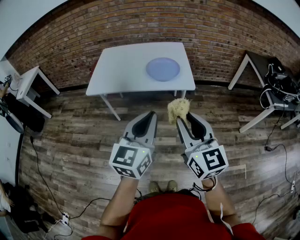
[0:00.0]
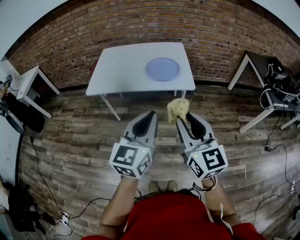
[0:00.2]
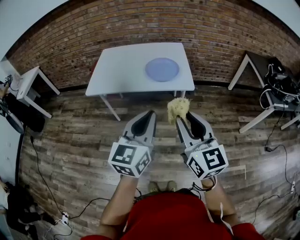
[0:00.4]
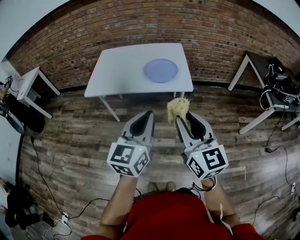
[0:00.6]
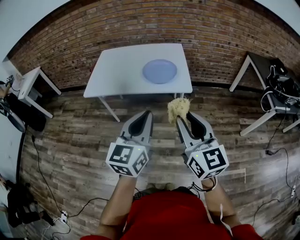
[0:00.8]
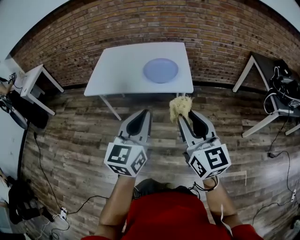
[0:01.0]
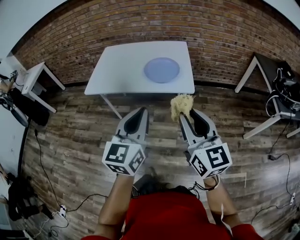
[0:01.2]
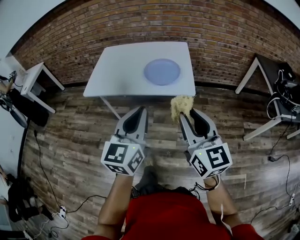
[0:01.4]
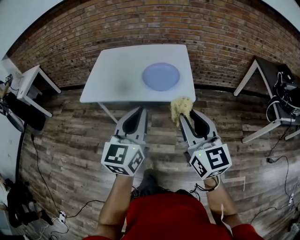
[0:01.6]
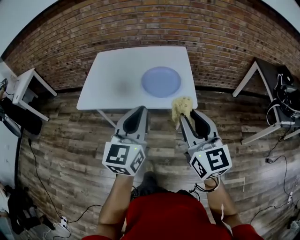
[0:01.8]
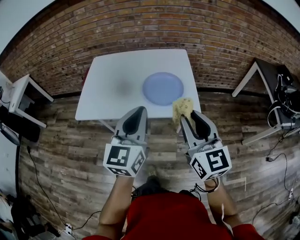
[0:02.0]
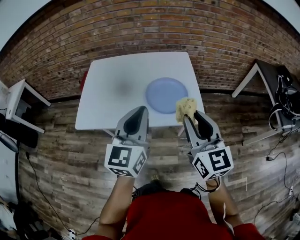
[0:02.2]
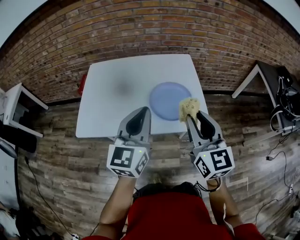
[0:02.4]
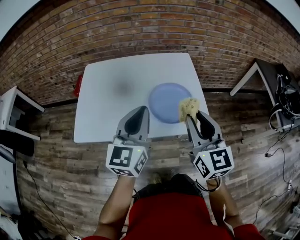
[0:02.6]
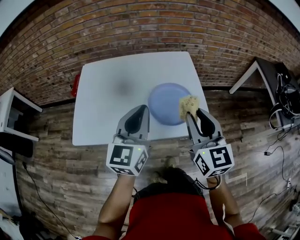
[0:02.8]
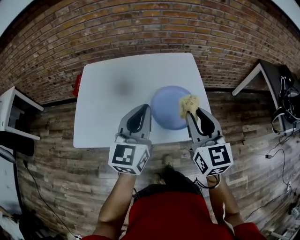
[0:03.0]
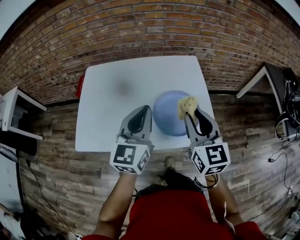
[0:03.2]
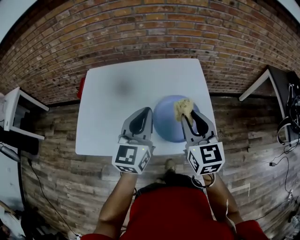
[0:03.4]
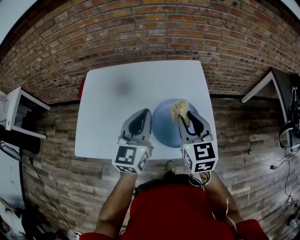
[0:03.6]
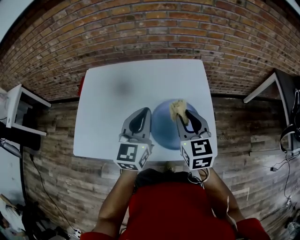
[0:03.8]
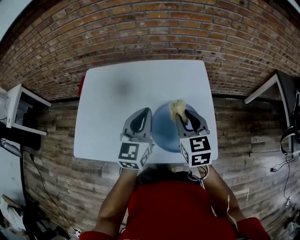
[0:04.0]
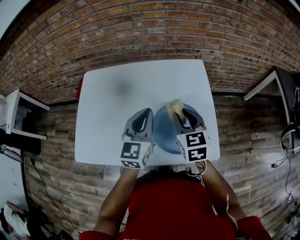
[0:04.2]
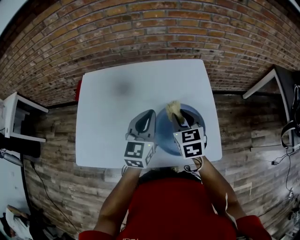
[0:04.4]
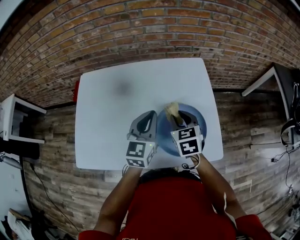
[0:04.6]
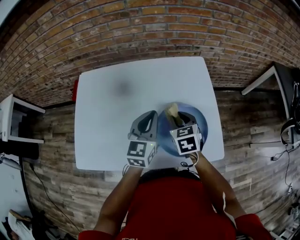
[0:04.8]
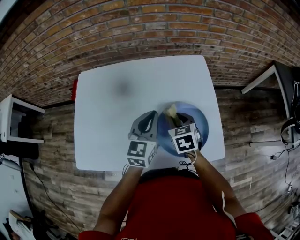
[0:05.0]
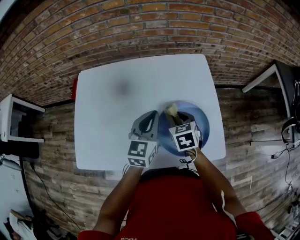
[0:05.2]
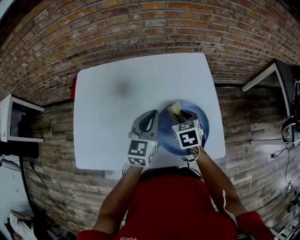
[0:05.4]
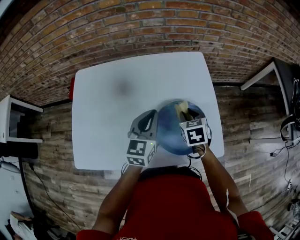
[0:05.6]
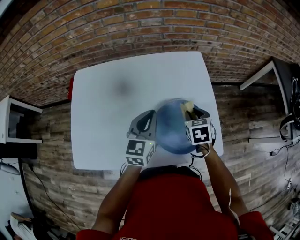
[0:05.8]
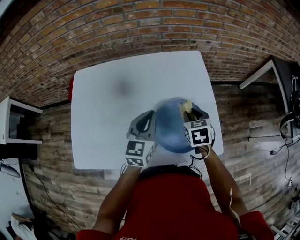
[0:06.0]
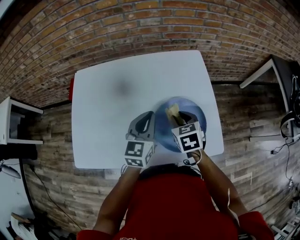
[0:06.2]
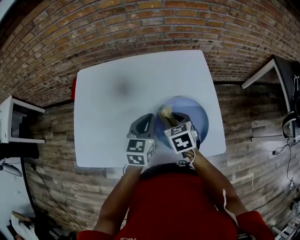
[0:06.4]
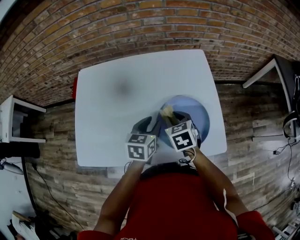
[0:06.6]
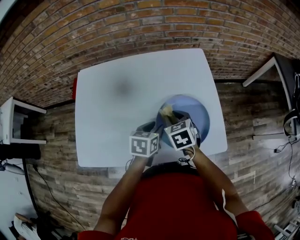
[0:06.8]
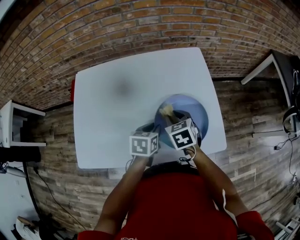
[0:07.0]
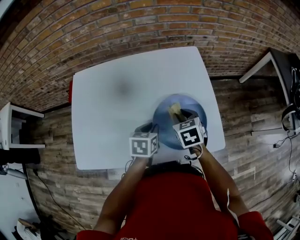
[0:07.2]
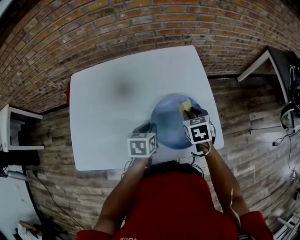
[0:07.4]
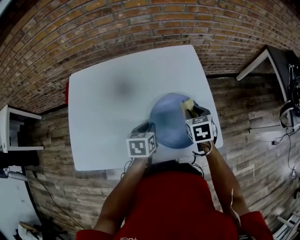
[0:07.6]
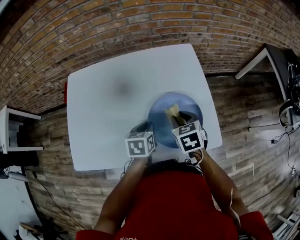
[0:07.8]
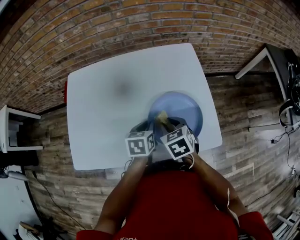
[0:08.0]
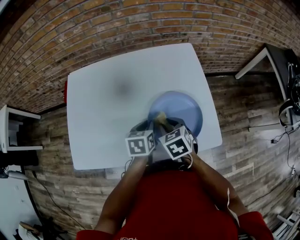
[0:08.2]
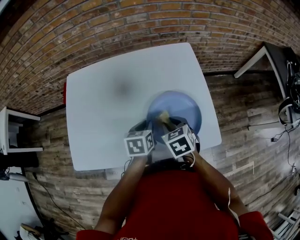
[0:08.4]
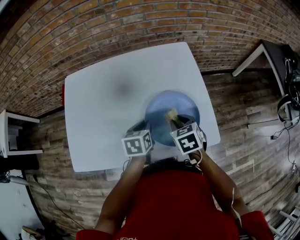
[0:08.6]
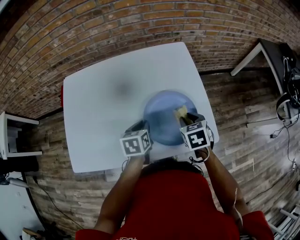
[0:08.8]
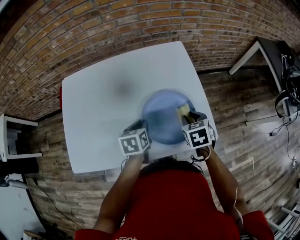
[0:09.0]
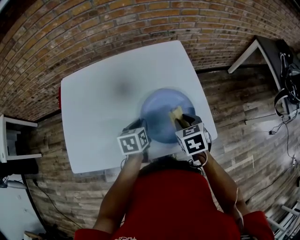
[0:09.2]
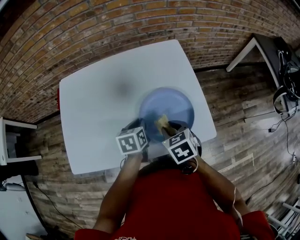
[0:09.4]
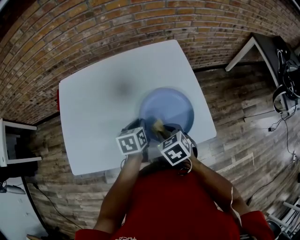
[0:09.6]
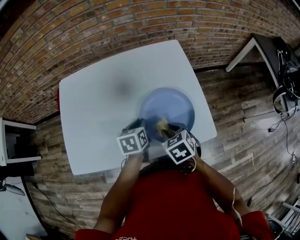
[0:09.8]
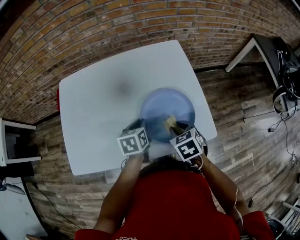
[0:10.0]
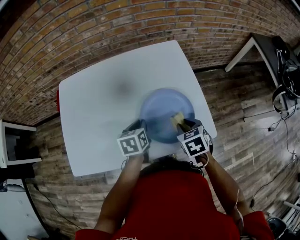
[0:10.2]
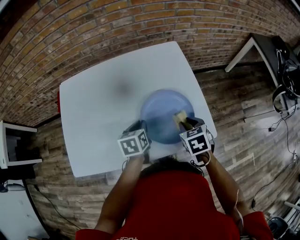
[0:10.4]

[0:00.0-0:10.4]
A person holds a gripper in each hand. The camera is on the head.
0:00.0 to 0:01.4: The right gripper shifts roughly 10 cm forward and to the right, while the left gripper goes some 10 cm forward.
0:01.4 to 0:03.0: The two grippers go approximately 35 cm forward.
0:03.0 to 0:04.4: The two grippers go about 20 cm forward and downward. The right gripper rotates roughly 20 degrees.
0:04.4 to 0:06.0: The left gripper shifts about 5 cm downward, while the right gripper travels downward and to the right by approximately 10 cm.
0:06.0 to 0:07.4: The right gripper reaches about 10 cm to the left, then returns. Meanwhile the left gripper is displaced downward by about 10 cm, tilts its fingers roughly 30 degrees downward, and opens, then closes once more.
0:07.4 to 0:09.0: The right gripper travels backward by about 5 cm, and reaches approximately 10 cm to the left, then returns.
0:09.0 to 0:10.4: The right gripper moves approximately 10 cm to the left and comes back.

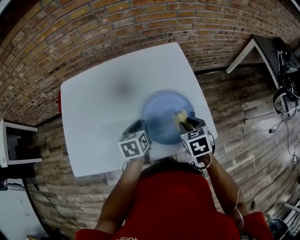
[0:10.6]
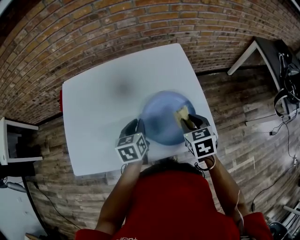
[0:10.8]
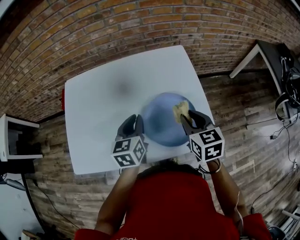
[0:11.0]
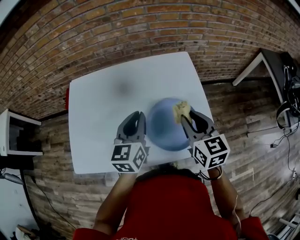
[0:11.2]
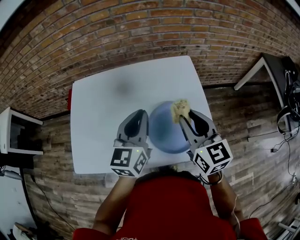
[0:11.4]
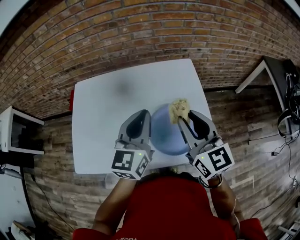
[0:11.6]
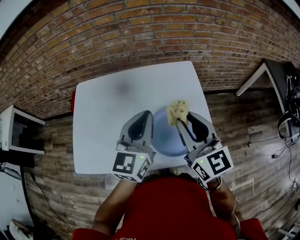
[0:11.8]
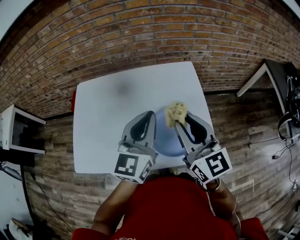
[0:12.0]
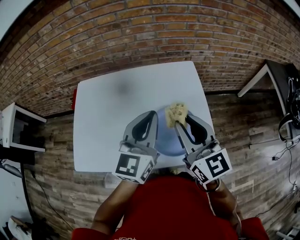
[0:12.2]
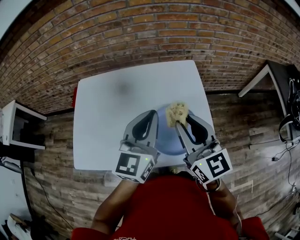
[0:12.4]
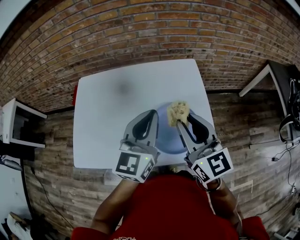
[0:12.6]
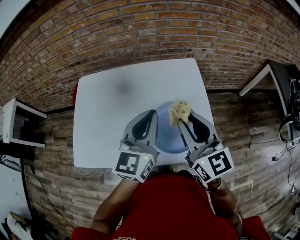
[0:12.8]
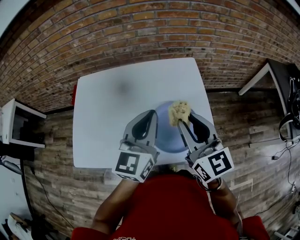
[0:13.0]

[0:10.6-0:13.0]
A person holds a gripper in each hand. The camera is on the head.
0:10.6 to 0:11.8: Both grippers travel together upward, approximately 25 cm. The right gripper points its fingers about 50 degrees further upward. The left gripper tips its fingers upward by approximately 40 degrees.
0:11.8 to 0:13.0: There are only small adjustments of the grippers.

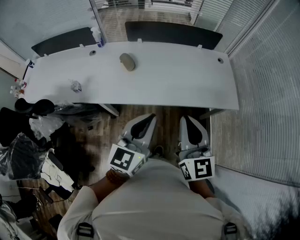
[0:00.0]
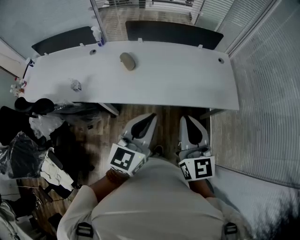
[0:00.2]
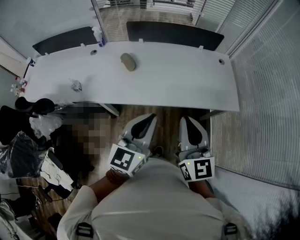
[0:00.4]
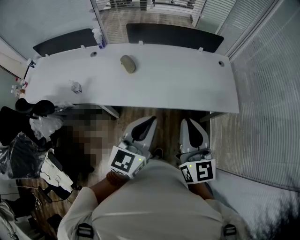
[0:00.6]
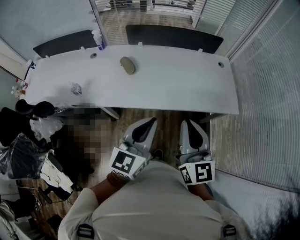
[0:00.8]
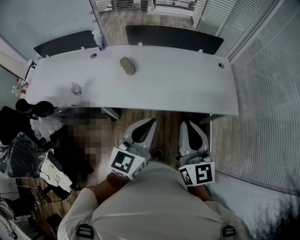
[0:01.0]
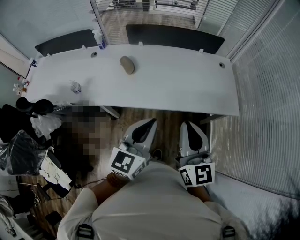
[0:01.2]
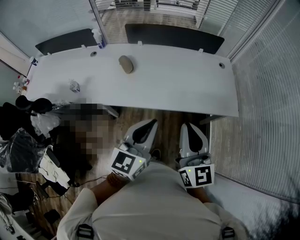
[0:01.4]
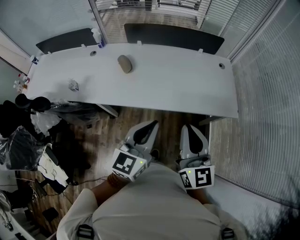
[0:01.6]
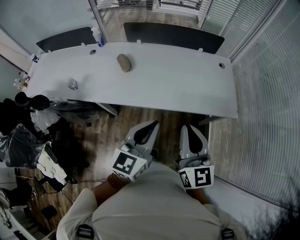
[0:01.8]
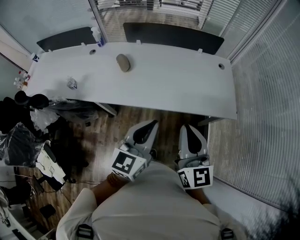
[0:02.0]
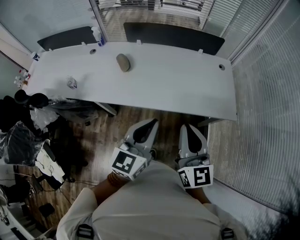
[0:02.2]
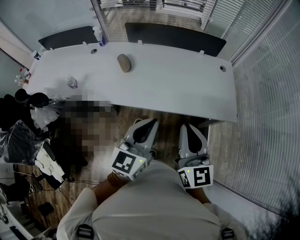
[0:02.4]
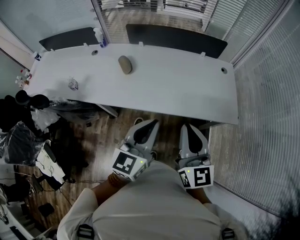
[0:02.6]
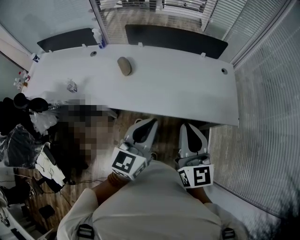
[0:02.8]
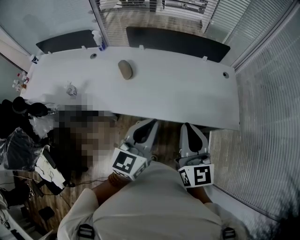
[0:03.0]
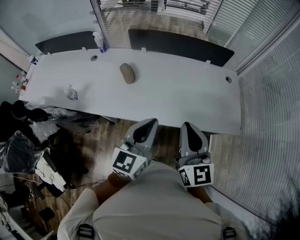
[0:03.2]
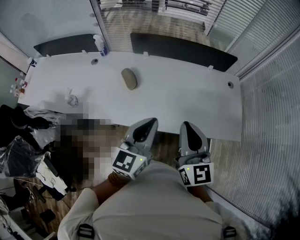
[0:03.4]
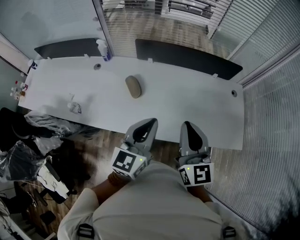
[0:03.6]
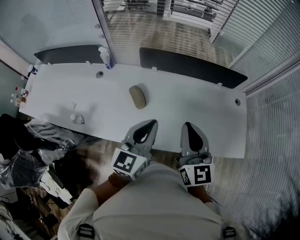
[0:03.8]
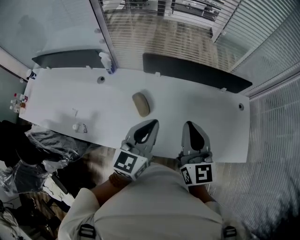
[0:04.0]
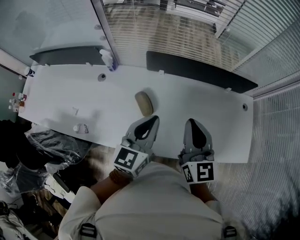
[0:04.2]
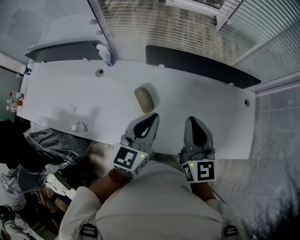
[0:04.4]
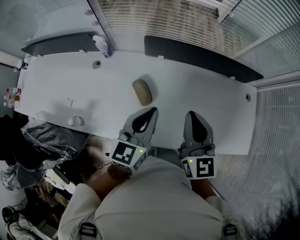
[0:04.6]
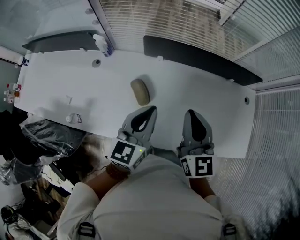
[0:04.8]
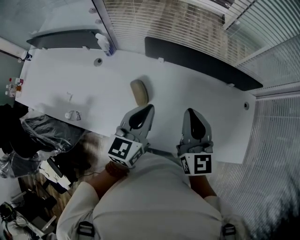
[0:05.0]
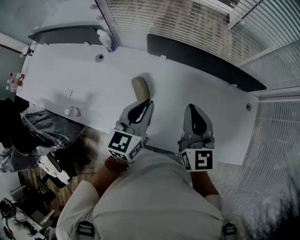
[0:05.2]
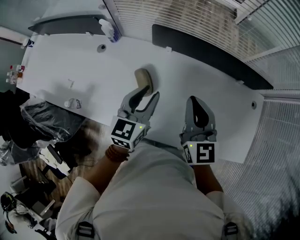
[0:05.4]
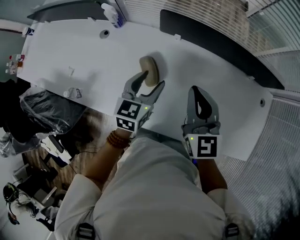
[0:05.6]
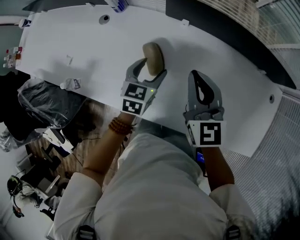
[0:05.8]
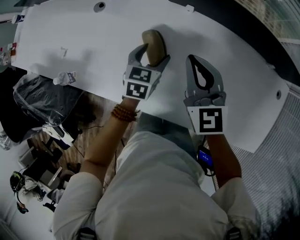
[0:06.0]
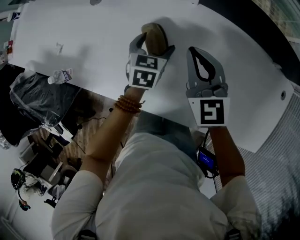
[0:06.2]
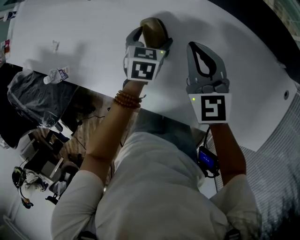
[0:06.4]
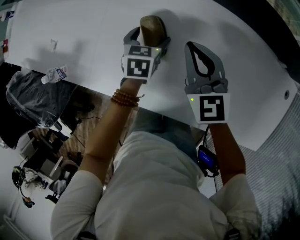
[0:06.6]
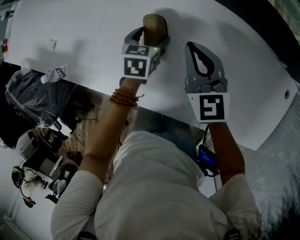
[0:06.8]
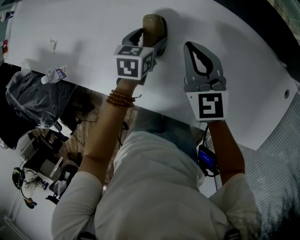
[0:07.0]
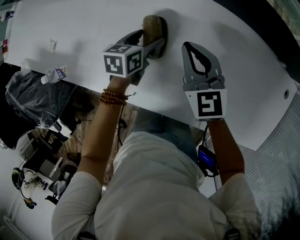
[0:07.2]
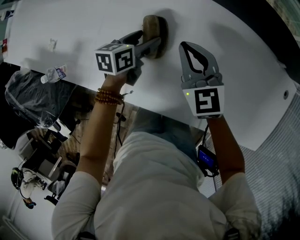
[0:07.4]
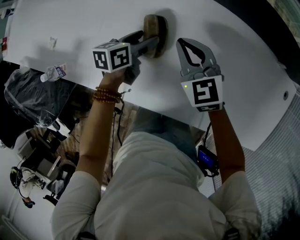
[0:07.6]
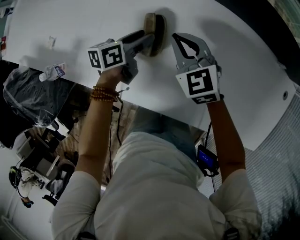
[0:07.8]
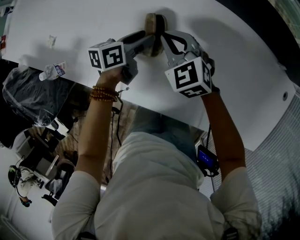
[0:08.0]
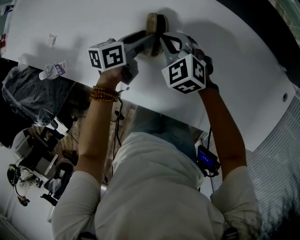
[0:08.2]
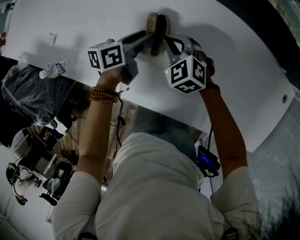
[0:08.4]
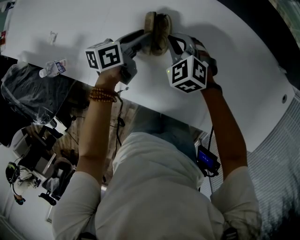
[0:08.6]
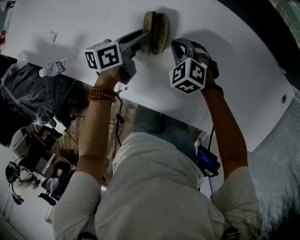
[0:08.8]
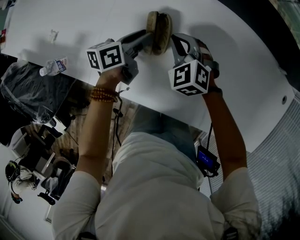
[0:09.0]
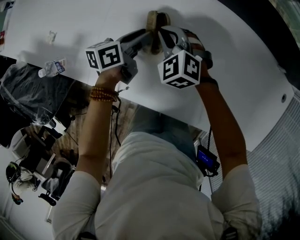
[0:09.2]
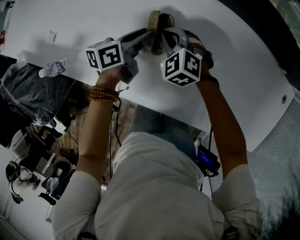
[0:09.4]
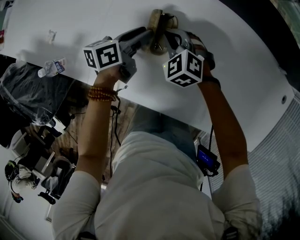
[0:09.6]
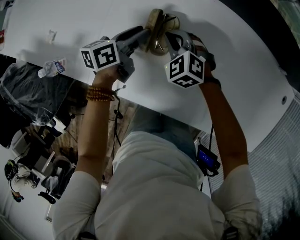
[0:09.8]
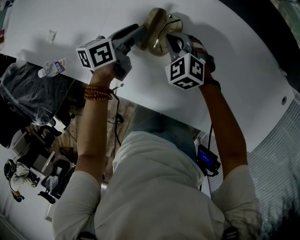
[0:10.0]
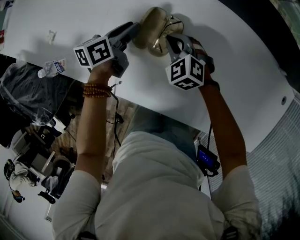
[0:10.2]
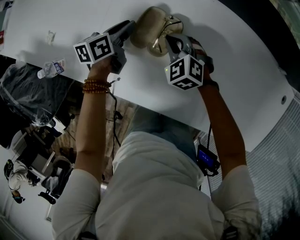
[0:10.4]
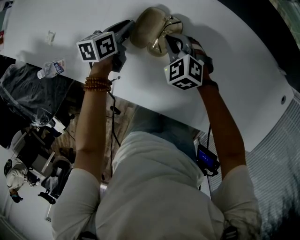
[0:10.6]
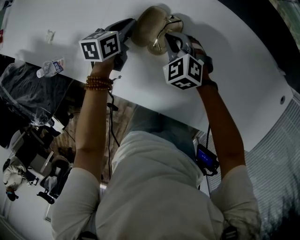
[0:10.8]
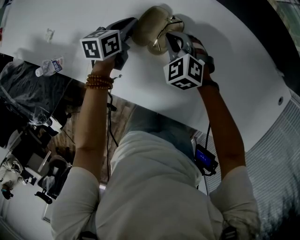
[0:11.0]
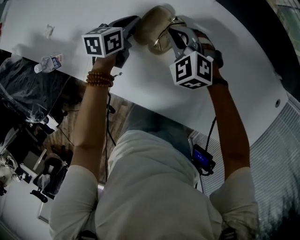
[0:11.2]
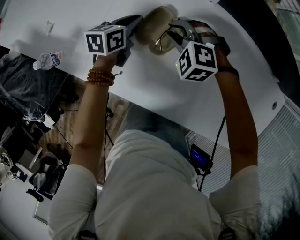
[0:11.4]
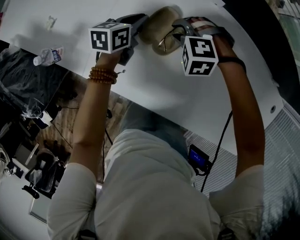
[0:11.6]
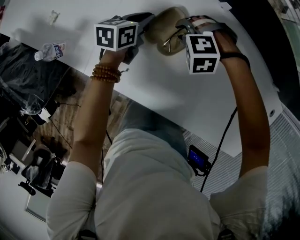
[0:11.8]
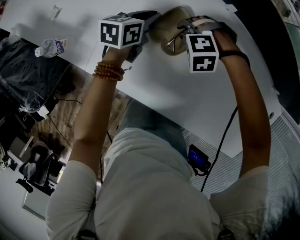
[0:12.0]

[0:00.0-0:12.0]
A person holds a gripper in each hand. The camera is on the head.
0:00.0 to 0:01.6: Both grippers move to the right, roughly 5 cm.
0:01.6 to 0:03.0: The grippers both shift forward by about 5 cm.
0:03.0 to 0:04.4: Both grippers move forward and to the left, some 35 cm.
0:04.4 to 0:06.0: The right gripper shifts approximately 20 cm downward and forward, and changes its angle by about 30 degrees. The left gripper shifts some 30 cm downward, angles its fingers downward, by some 30 degrees, and opens its fingers.
0:06.0 to 0:07.6: The left gripper is displaced downward by about 5 cm, and swivels about 30 degrees, while the right gripper is displaced downward by some 10 cm.
0:07.6 to 0:09.0: The left gripper closes. Meanwhile the right gripper travels downward by approximately 10 cm, and changes its angle by approximately 30 degrees.
0:09.0 to 0:10.4: The left gripper shifts approximately 5 cm to the left.
0:10.4 to 0:12.0: The right gripper rolls counterclockwise, seen from behind, by roughly 50 degrees, and opens.
